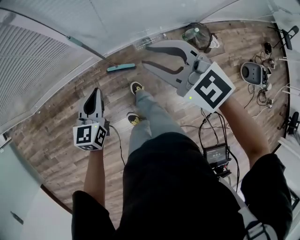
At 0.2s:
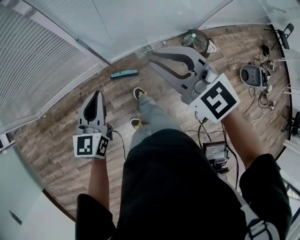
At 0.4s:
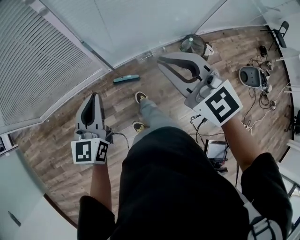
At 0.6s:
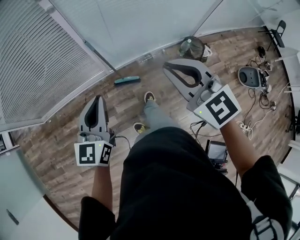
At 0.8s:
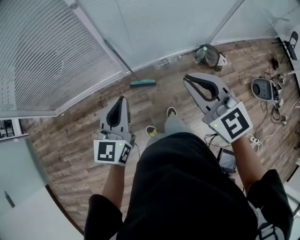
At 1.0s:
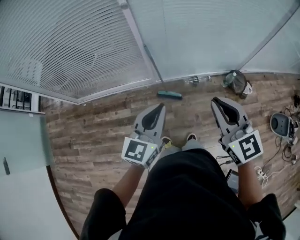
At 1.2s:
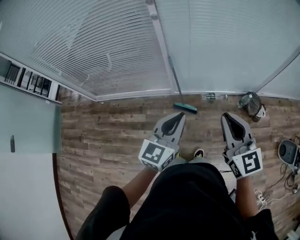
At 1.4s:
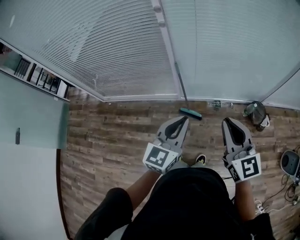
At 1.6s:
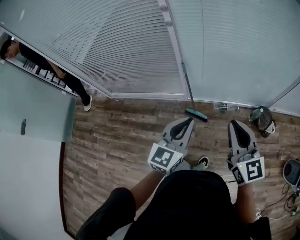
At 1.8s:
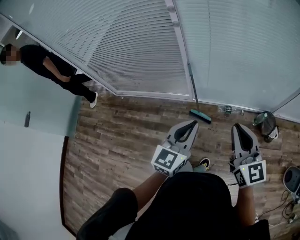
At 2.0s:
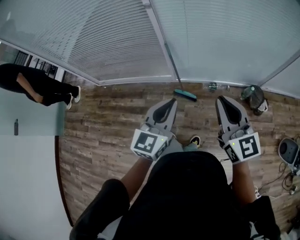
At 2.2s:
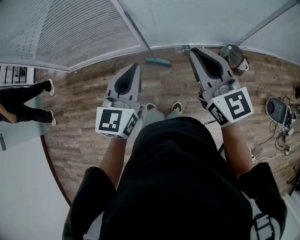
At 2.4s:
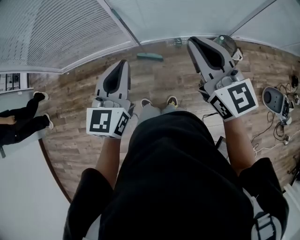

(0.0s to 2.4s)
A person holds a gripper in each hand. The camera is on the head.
0.0s - 1.2s: The right gripper heads backward and upward, covering about 25 cm, turns by some 30 degrees, and closes up; the left gripper is displaced upward and backward by approximately 30 cm.
1.2s - 2.4s: The right gripper shifts roughly 10 cm to the right; the left gripper goes about 5 cm to the right.

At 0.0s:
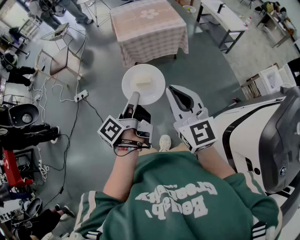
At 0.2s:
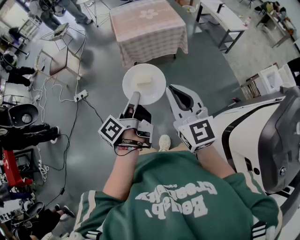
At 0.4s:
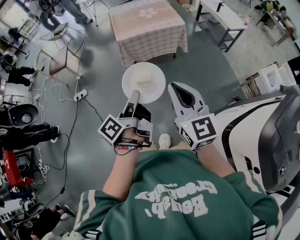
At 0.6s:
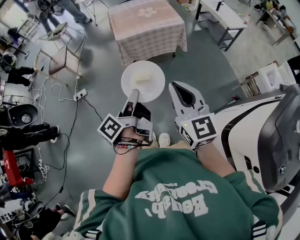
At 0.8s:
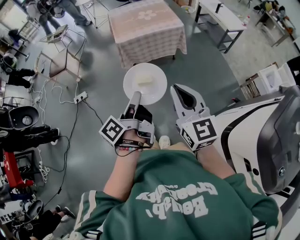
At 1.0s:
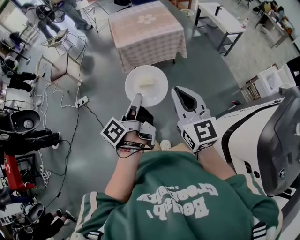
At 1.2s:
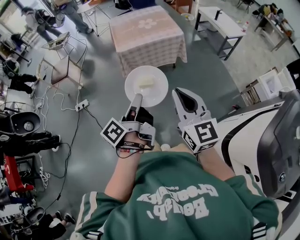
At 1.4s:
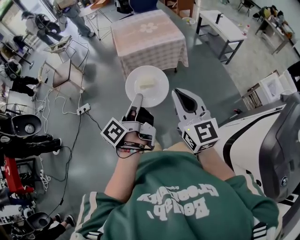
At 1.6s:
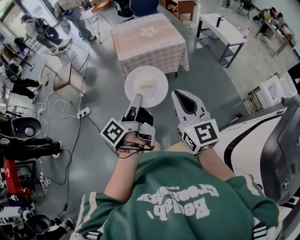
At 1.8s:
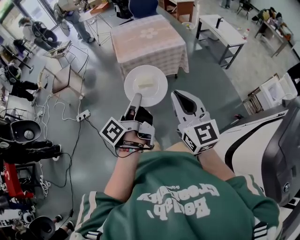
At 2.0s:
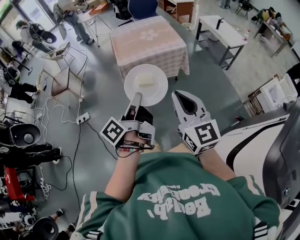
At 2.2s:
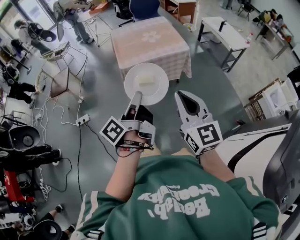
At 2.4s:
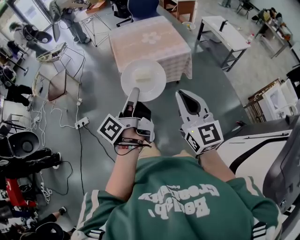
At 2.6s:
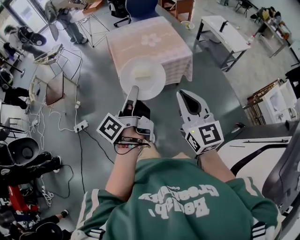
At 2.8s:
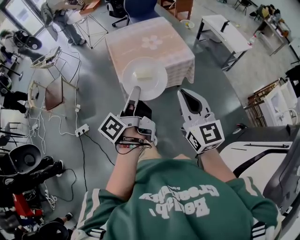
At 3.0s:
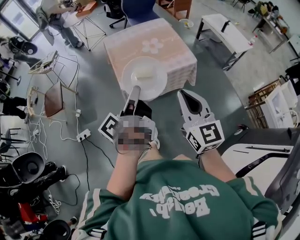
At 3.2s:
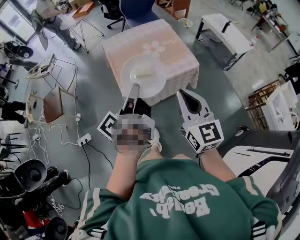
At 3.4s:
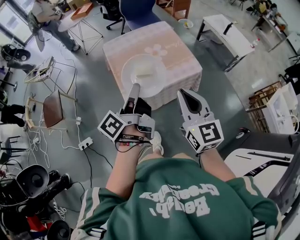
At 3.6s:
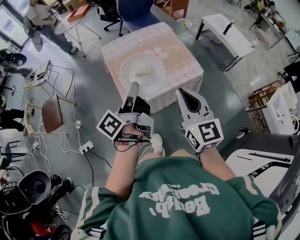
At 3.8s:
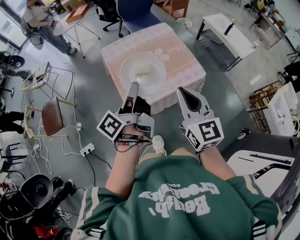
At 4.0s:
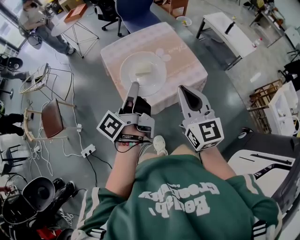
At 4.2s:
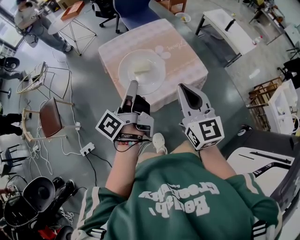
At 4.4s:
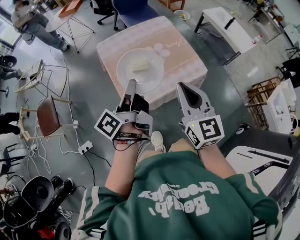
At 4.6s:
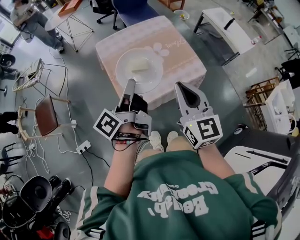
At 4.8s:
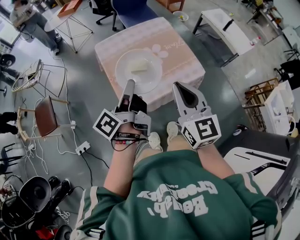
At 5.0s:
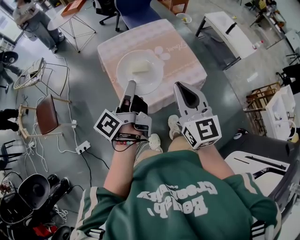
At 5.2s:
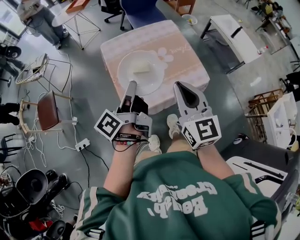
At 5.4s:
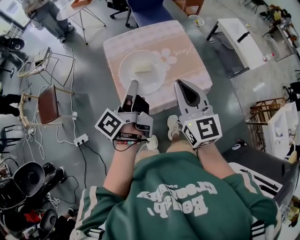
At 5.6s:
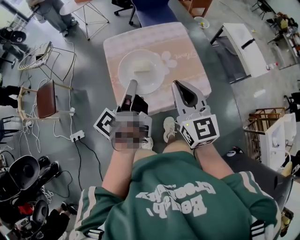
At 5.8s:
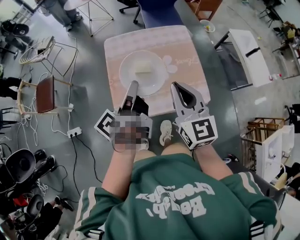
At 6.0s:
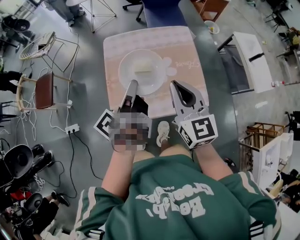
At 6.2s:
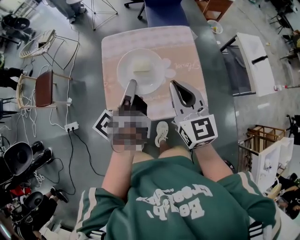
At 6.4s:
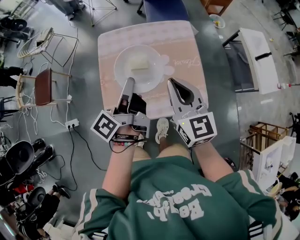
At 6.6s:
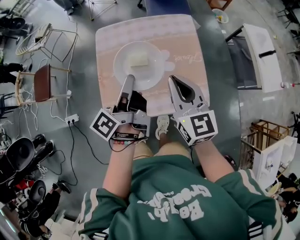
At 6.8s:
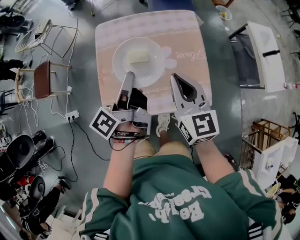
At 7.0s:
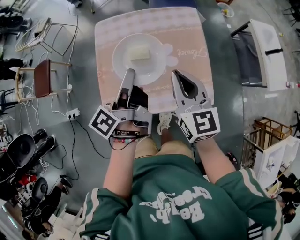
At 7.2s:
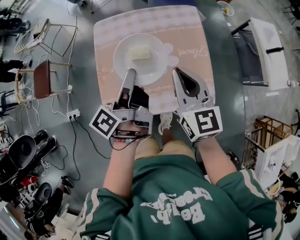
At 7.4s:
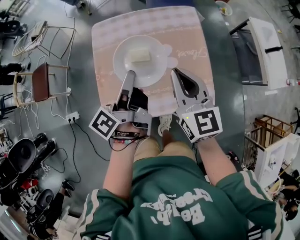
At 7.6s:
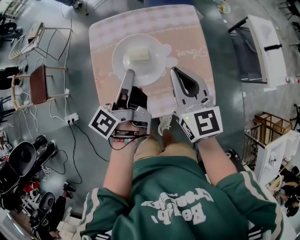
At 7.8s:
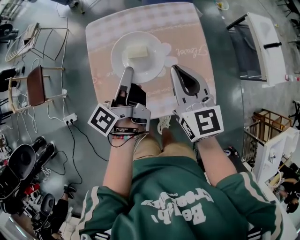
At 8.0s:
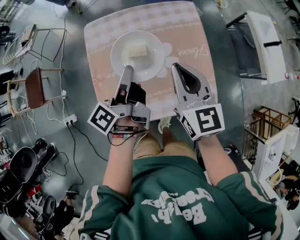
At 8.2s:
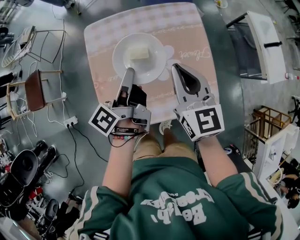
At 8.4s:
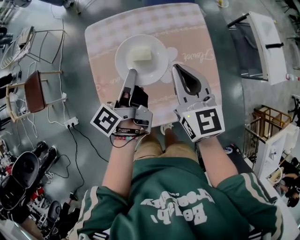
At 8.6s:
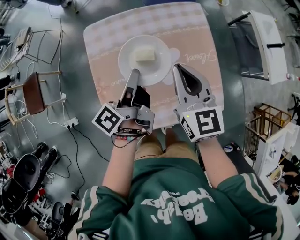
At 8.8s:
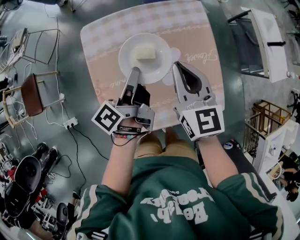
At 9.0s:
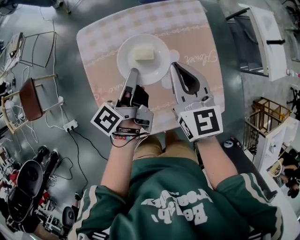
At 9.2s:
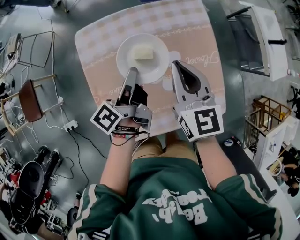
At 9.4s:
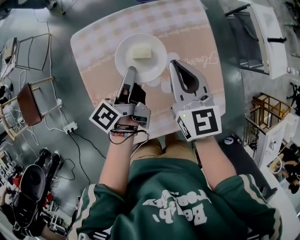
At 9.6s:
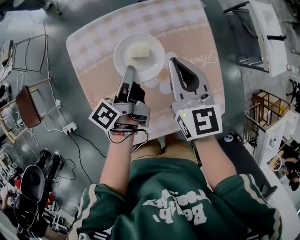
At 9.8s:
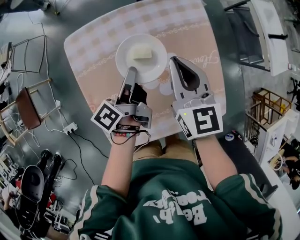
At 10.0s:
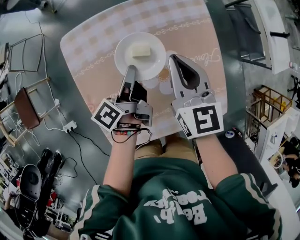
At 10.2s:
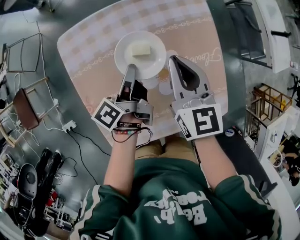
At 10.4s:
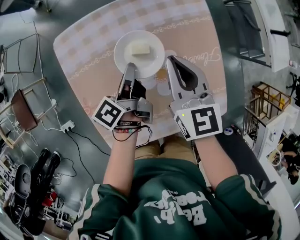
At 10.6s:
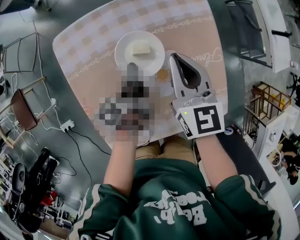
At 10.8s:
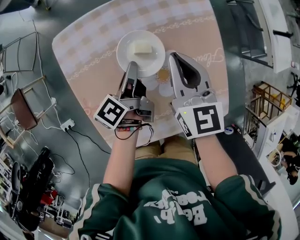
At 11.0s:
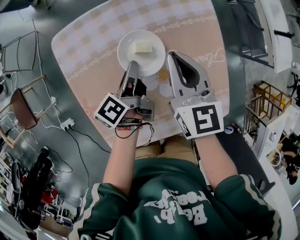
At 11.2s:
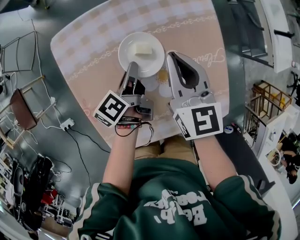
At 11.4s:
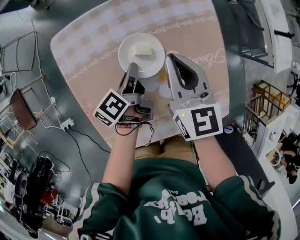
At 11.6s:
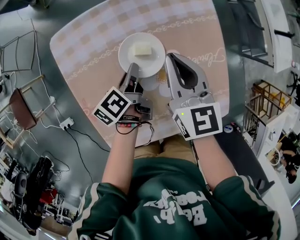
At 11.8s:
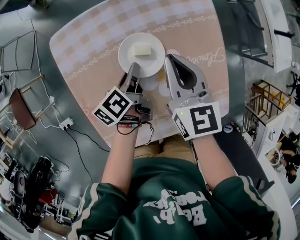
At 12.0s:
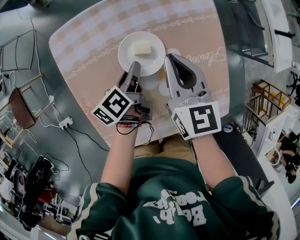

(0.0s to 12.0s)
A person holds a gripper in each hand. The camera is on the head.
0.0s - 1.6s: The right gripper ends up about 5 cm from where it was.
1.6s - 3.0s: The right gripper ends up roughly 35 cm from where it was.
3.0s - 4.4s: The right gripper shifts by about 20 cm.
4.4s - 6.0s: The right gripper moves roughly 20 cm.
6.0s - 7.6s: The right gripper changes place by some 15 cm.
7.6s - 9.0s: The right gripper ends up about 10 cm from where it was.
9.0s - 10.4s: The right gripper is displaced downward by approximately 5 cm.

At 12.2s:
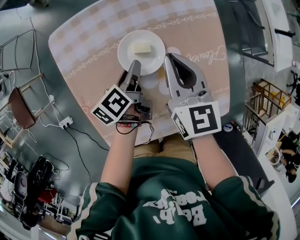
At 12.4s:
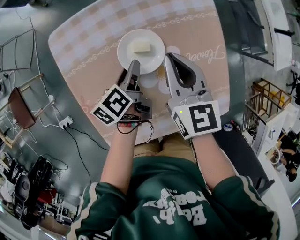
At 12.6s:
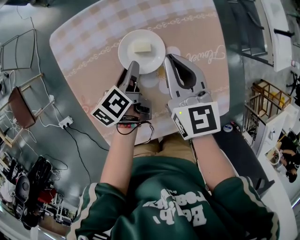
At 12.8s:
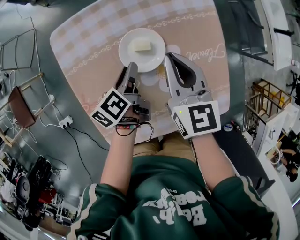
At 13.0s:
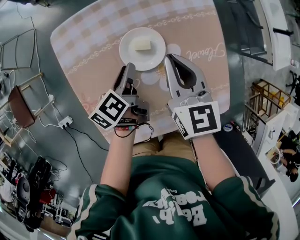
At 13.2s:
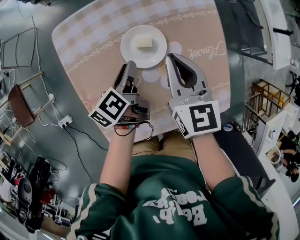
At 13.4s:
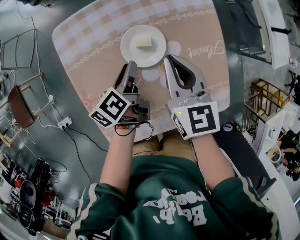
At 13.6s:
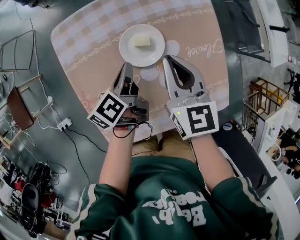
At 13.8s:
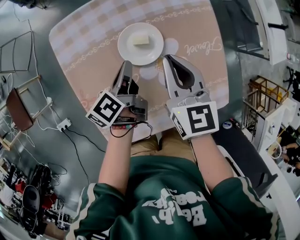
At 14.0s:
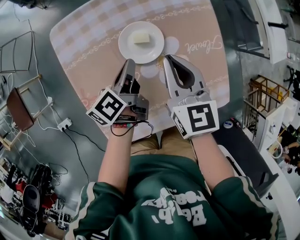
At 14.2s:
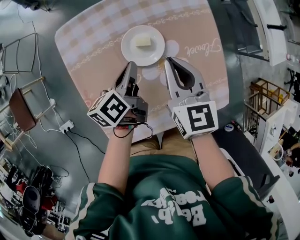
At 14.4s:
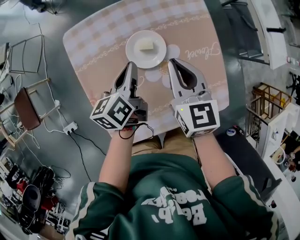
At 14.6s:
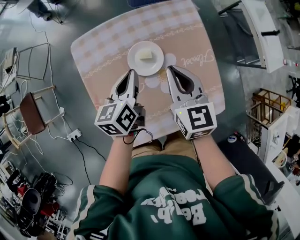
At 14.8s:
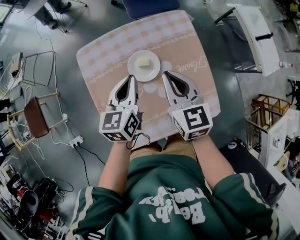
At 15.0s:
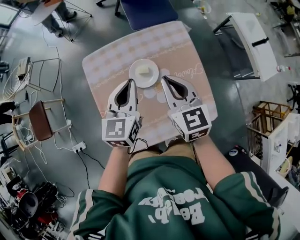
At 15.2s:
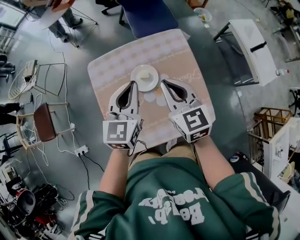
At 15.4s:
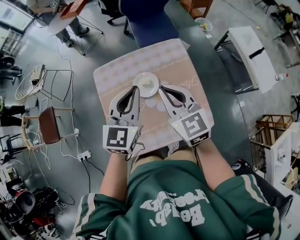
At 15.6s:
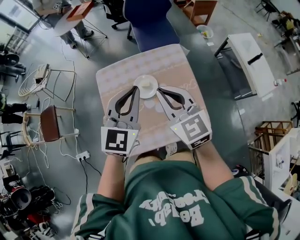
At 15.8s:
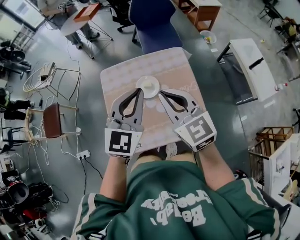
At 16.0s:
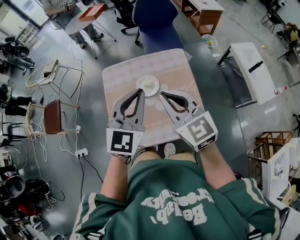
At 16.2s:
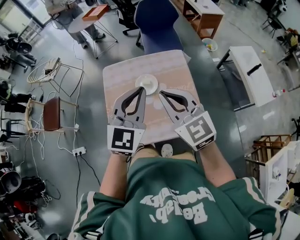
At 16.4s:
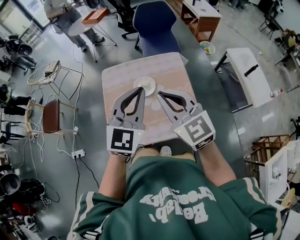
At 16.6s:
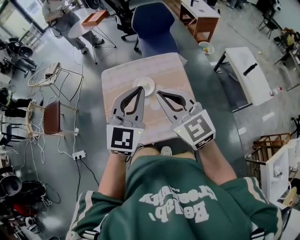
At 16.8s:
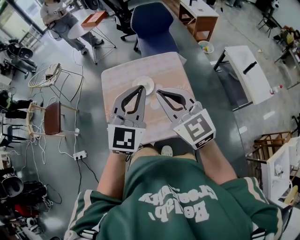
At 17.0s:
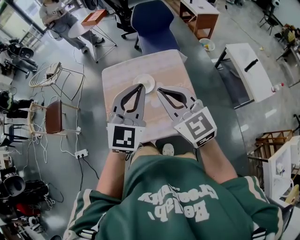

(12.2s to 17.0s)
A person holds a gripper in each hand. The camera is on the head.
13.8s - 15.4s: The right gripper goes some 20 cm upward, and changes its angle by approximately 20 degrees.
15.4s - 17.0s: The right gripper changes place by roughly 15 cm.

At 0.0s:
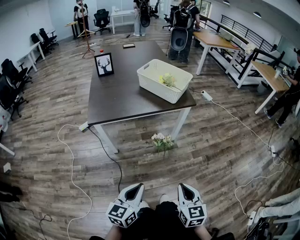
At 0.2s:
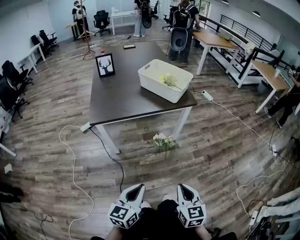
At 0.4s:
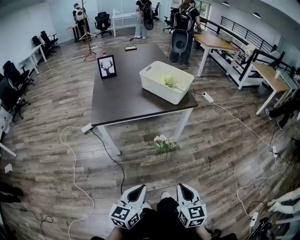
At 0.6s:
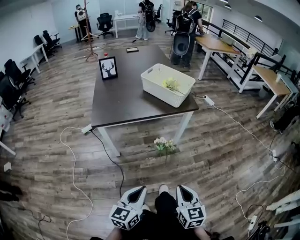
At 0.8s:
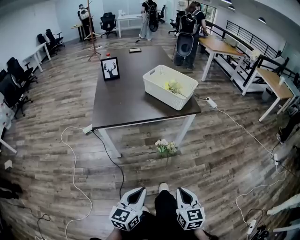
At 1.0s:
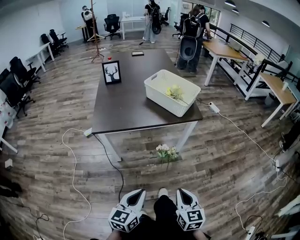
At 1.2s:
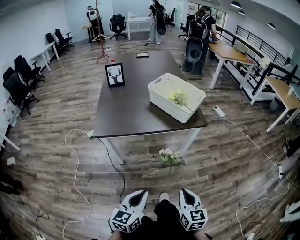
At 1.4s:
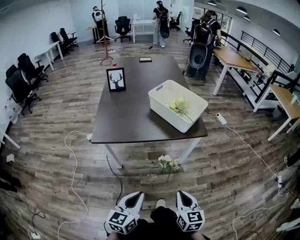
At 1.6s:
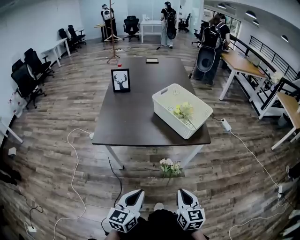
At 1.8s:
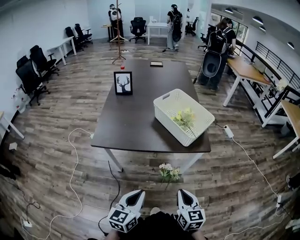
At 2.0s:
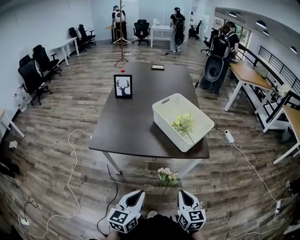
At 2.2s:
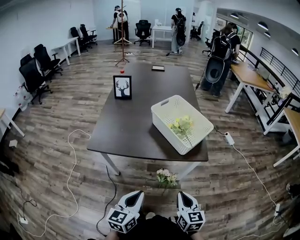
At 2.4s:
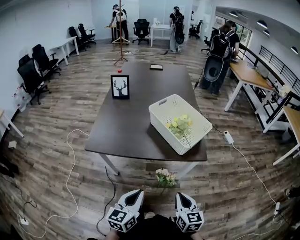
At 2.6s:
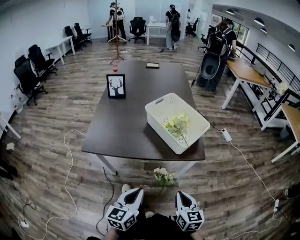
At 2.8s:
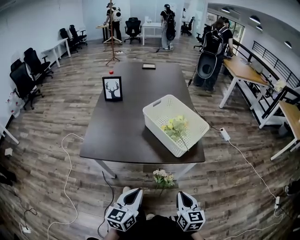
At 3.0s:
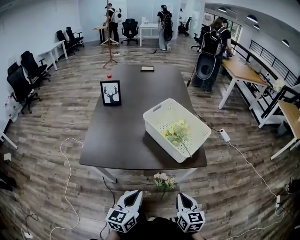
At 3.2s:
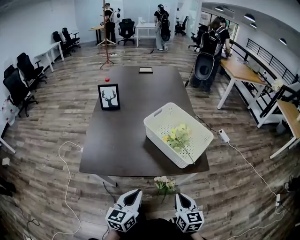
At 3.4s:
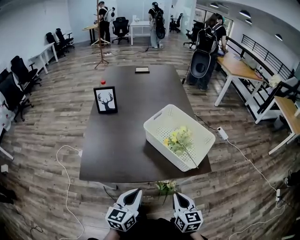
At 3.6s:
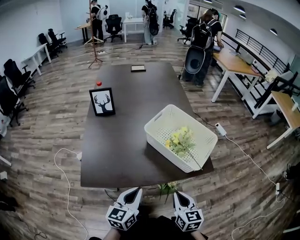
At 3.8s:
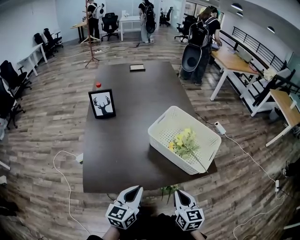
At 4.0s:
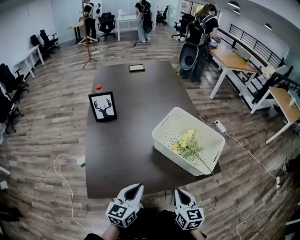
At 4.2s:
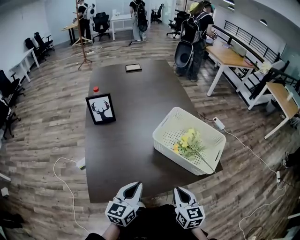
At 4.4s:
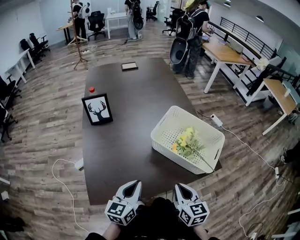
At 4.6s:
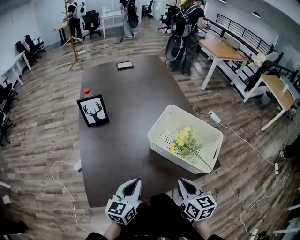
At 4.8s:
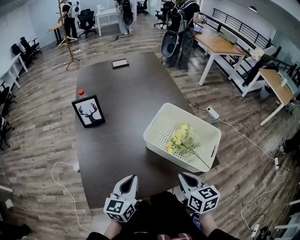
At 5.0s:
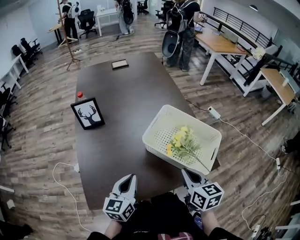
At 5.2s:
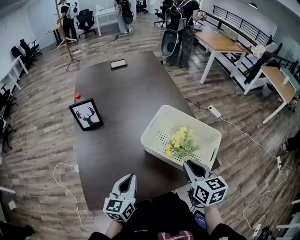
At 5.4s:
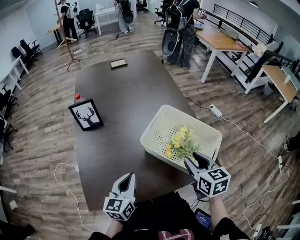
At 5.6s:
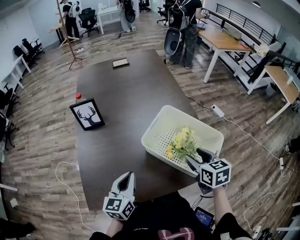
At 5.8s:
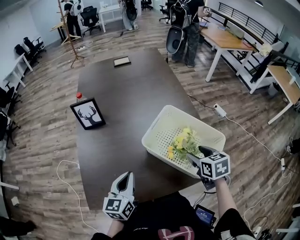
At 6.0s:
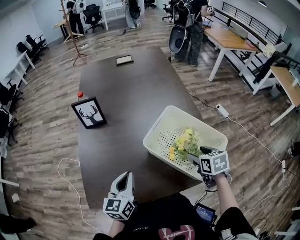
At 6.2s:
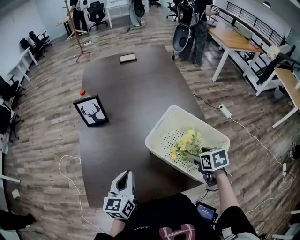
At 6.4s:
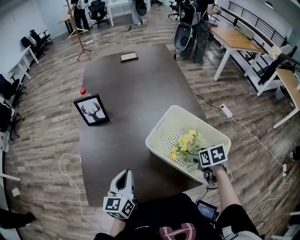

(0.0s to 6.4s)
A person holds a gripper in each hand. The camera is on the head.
0.0s - 1.6s: Both grippers move forward, roughly 20 cm.
1.6s - 3.2s: The grippers both shift forward by approximately 20 cm.
3.2s - 4.8s: The two grippers go some 20 cm forward and to the left.
4.8s - 6.4s: The left gripper travels forward by some 5 cm. Meanwhile the right gripper is displaced forward, to the right and downward by about 20 cm, tilts its fingers roughly 30 degrees downward, and opens.
